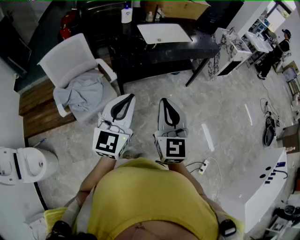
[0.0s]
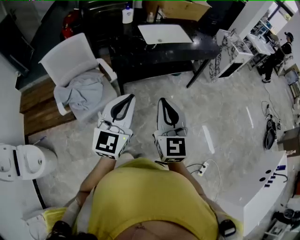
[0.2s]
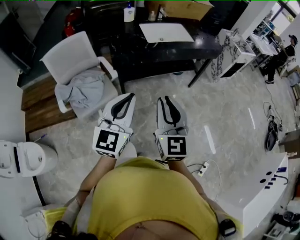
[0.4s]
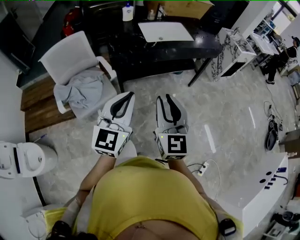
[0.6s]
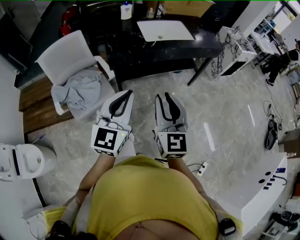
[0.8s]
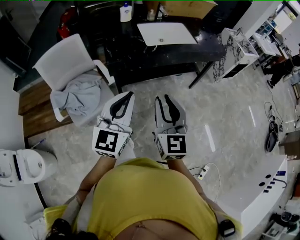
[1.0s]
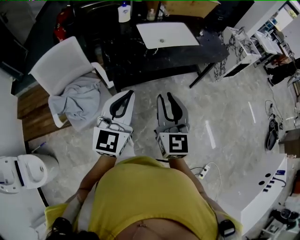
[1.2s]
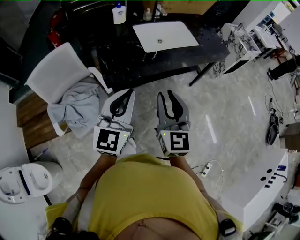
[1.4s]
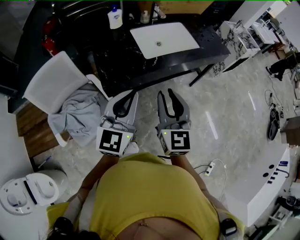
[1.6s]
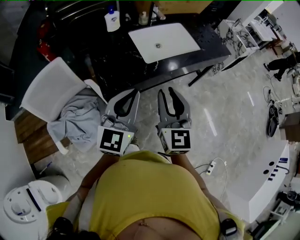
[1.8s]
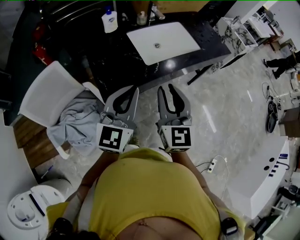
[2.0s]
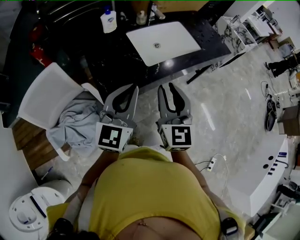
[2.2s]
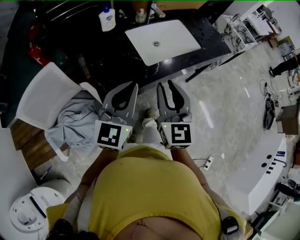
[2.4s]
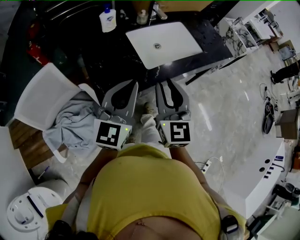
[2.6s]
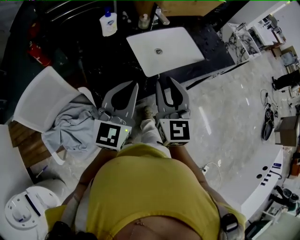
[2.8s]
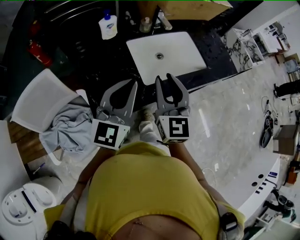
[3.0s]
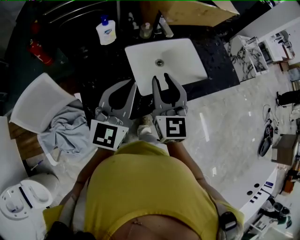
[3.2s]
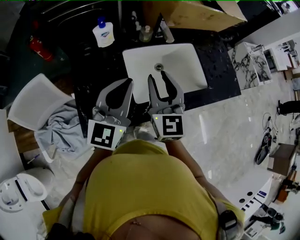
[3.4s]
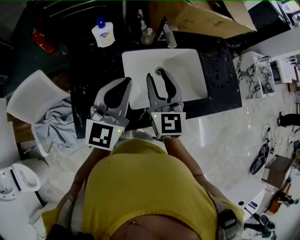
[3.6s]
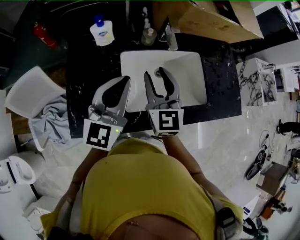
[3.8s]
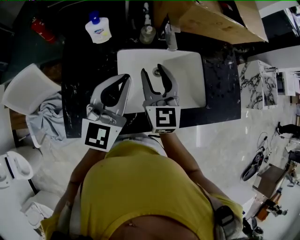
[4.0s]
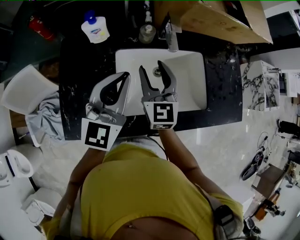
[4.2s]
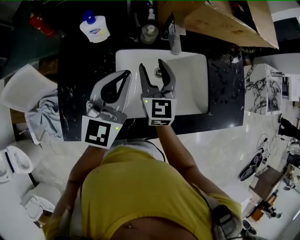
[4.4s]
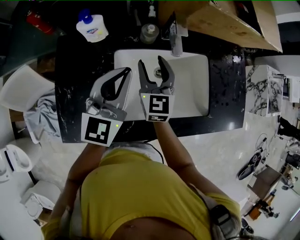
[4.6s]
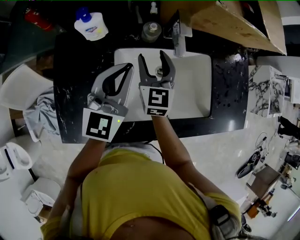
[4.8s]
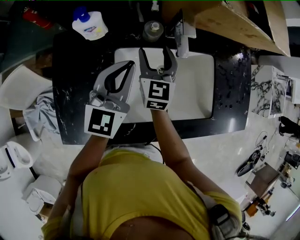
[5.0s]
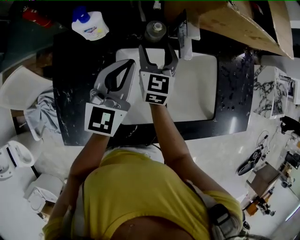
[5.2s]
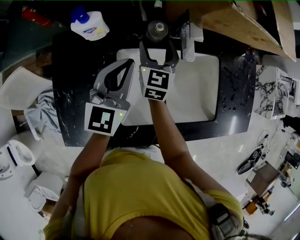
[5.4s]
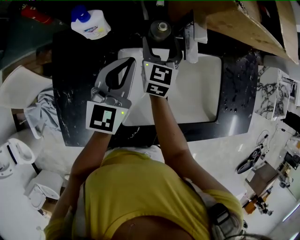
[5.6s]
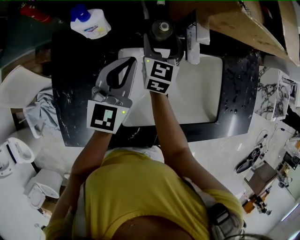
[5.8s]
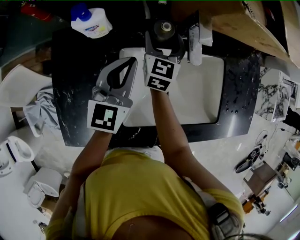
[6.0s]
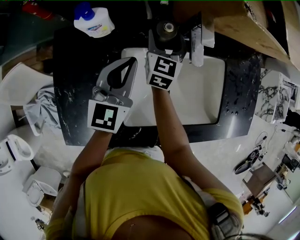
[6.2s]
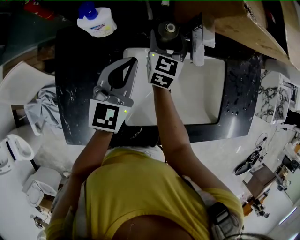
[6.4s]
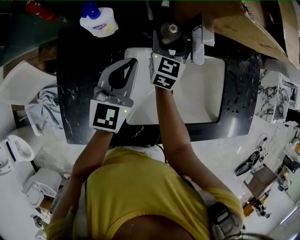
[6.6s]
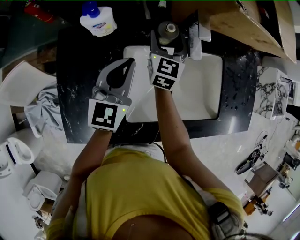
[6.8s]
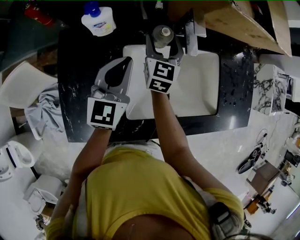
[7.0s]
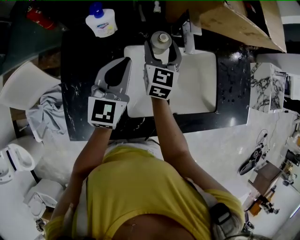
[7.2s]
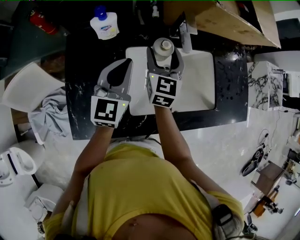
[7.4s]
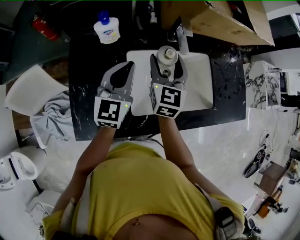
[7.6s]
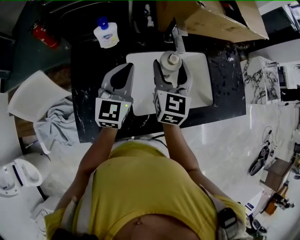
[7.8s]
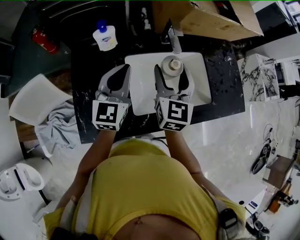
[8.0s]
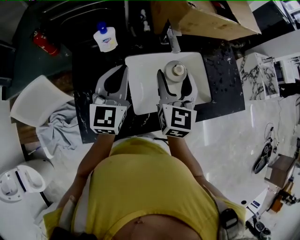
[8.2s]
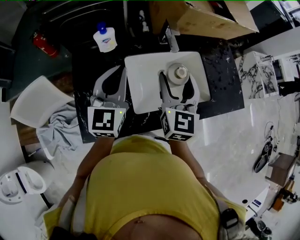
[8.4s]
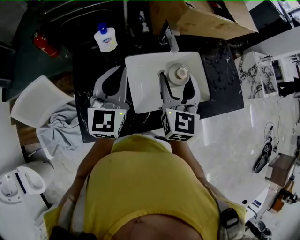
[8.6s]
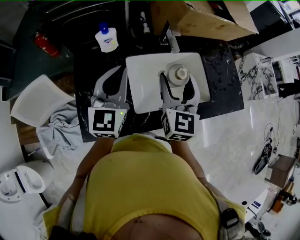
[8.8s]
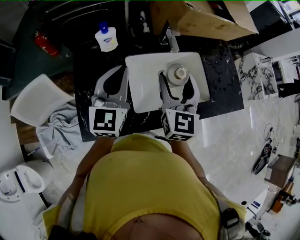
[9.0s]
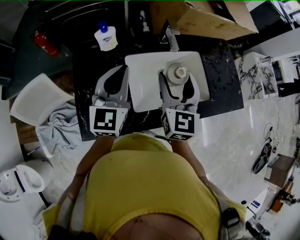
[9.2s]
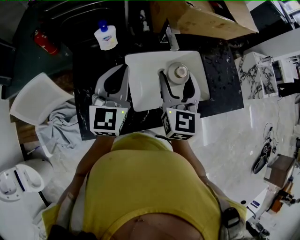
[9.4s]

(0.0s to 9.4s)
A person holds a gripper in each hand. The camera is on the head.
0.0s - 1.6s: The grippers both shift forward by approximately 30 cm.
1.6s - 3.2s: The grippers both shift forward by approximately 30 cm.
3.2s - 4.8s: The grippers both shift forward and downward by about 30 cm.
4.8s - 6.2s: The right gripper travels forward and downward by approximately 10 cm. The left gripper heads downward, covering approximately 5 cm.
6.2s - 7.8s: The right gripper heads backward and upward, covering approximately 25 cm, while the left gripper travels backward and upward by roughly 10 cm.
7.8s - 9.4s: The right gripper travels backward and upward by some 10 cm; the left gripper is displaced upward by about 5 cm.

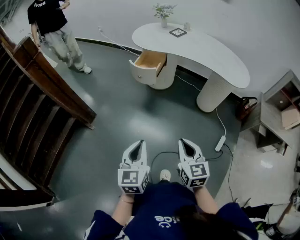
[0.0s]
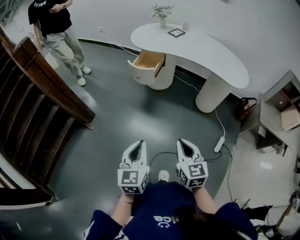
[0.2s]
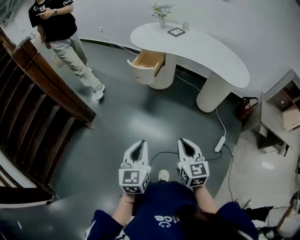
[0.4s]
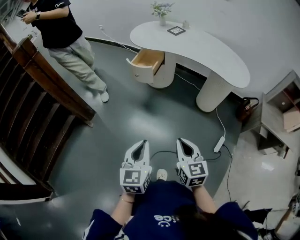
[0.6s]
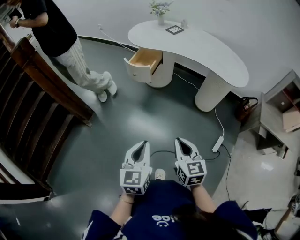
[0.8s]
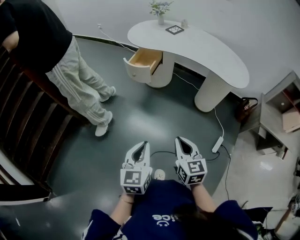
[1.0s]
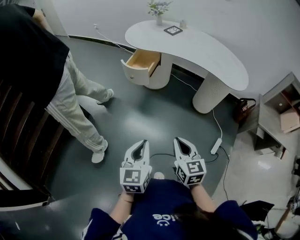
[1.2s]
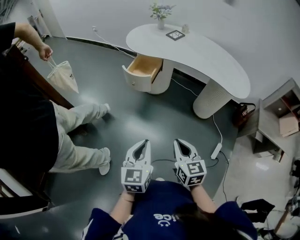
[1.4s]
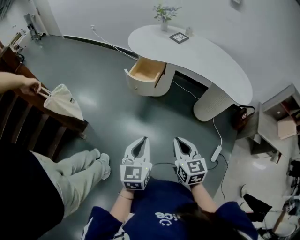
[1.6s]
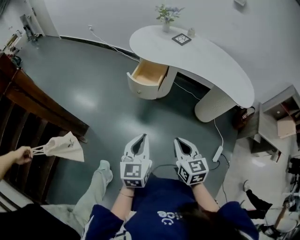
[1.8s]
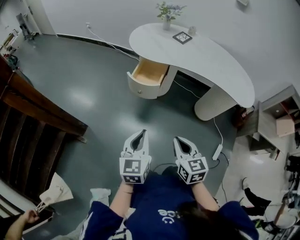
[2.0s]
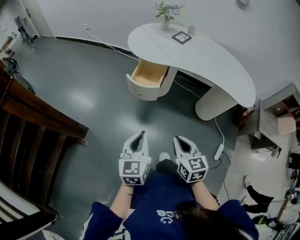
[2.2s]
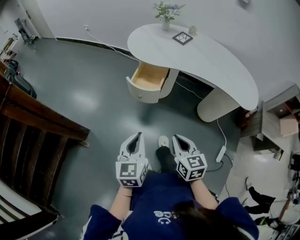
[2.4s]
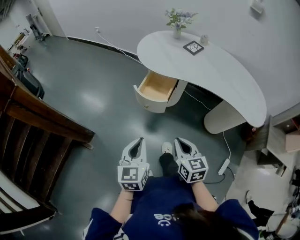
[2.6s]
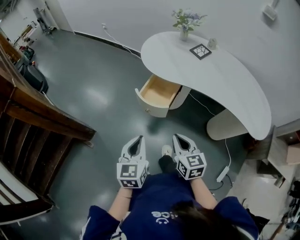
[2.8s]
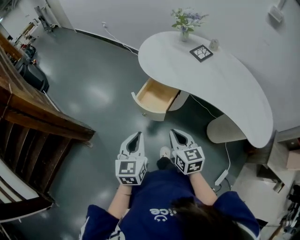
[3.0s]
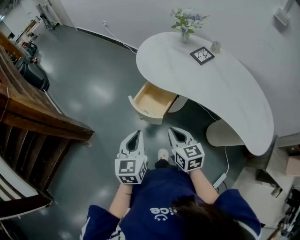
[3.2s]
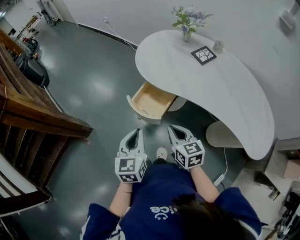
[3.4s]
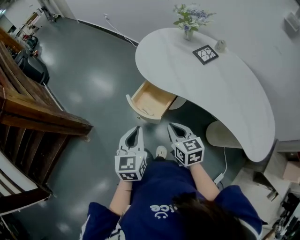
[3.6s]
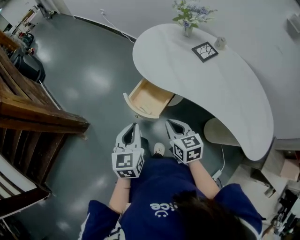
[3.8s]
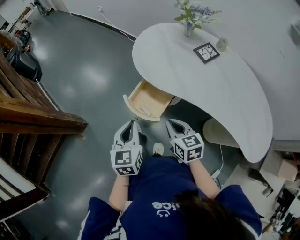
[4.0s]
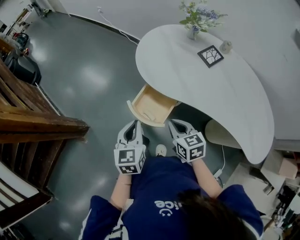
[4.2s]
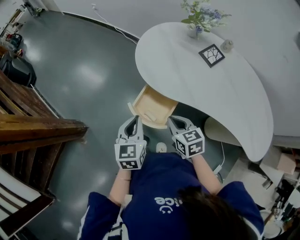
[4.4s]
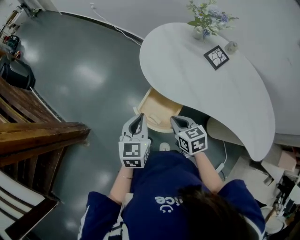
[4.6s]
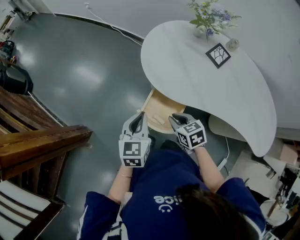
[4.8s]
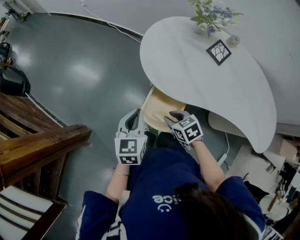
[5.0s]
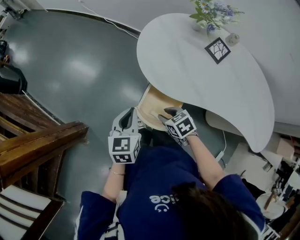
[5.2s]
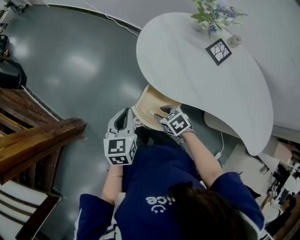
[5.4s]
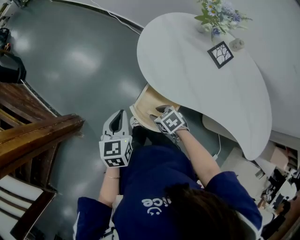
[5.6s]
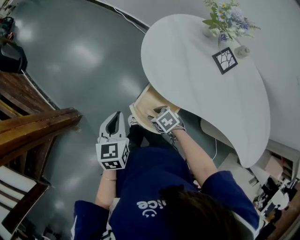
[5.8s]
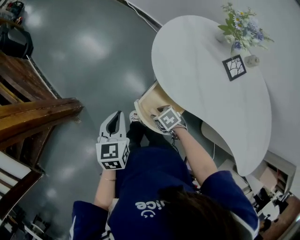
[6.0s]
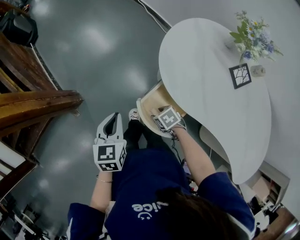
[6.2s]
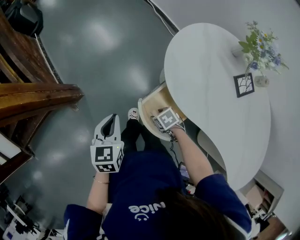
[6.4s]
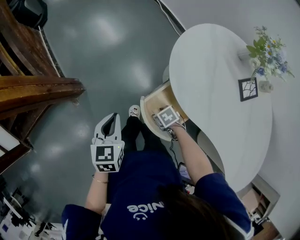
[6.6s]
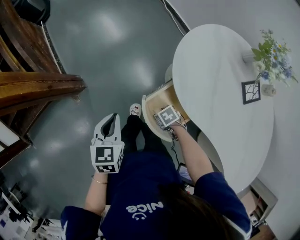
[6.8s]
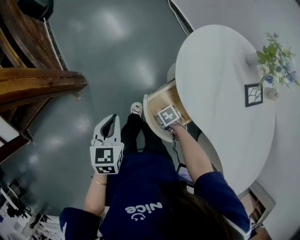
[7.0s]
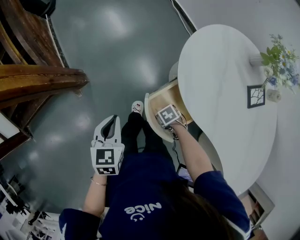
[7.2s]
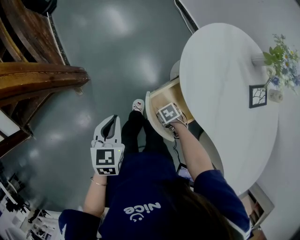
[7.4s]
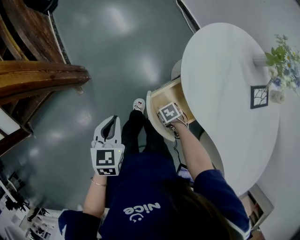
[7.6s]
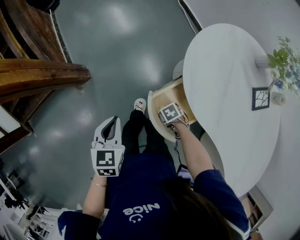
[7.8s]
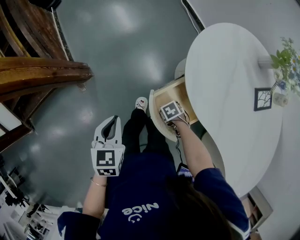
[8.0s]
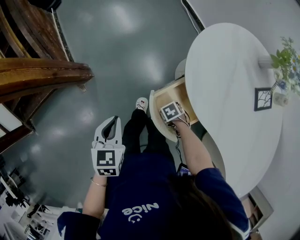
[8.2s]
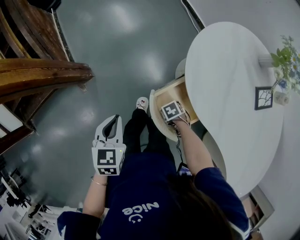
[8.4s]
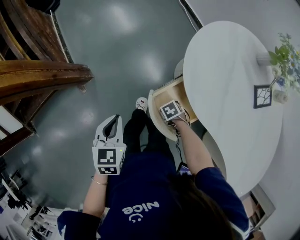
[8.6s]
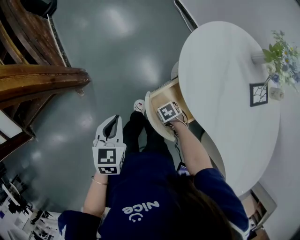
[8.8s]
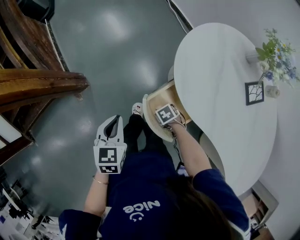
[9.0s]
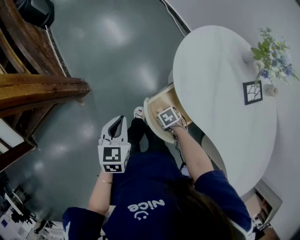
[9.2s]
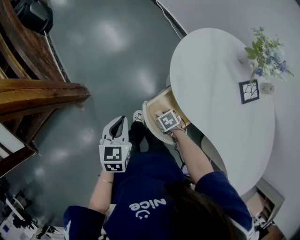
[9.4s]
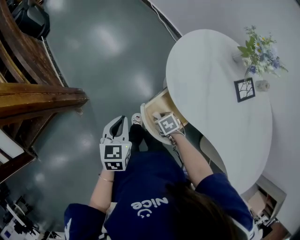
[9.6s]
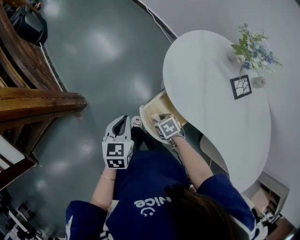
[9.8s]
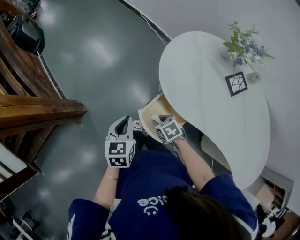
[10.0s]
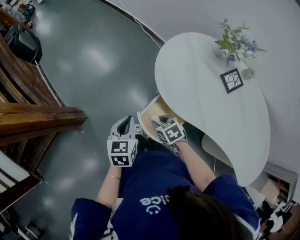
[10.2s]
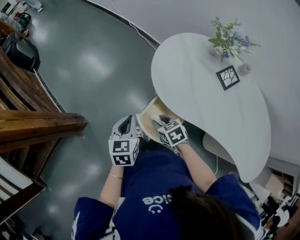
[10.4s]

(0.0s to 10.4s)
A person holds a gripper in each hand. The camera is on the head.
0.0s - 1.4s: Both grippers move forward, some 10 cm.
1.4s - 3.0s: The grippers both shift forward by approximately 35 cm.
3.0s - 4.4s: Both grippers travel together forward, roughly 20 cm.
4.4s - 6.0s: The left gripper shifts by some 10 cm, while the right gripper shifts approximately 20 cm downward, changes its angle by about 40 degrees, and opens.
6.0s - 7.4s: The right gripper shifts roughly 10 cm downward. The left gripper moves about 10 cm.
7.4s - 9.0s: The right gripper closes up.
9.0s - 10.4s: The right gripper moves upward, some 20 cm, and swivels some 30 degrees. Meanwhile the left gripper moves roughly 10 cm.

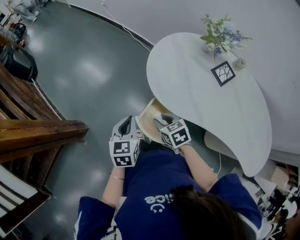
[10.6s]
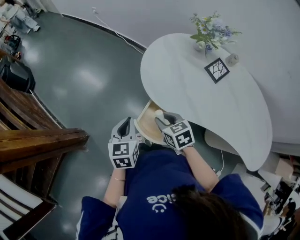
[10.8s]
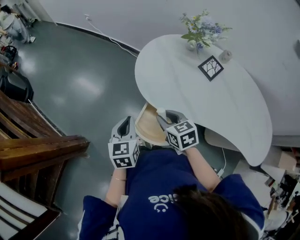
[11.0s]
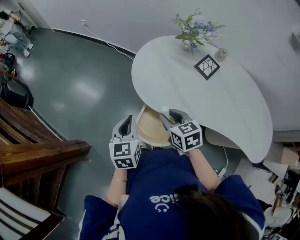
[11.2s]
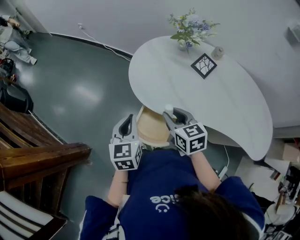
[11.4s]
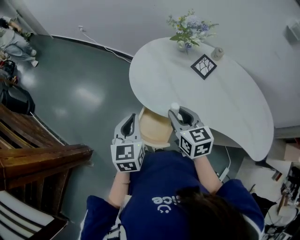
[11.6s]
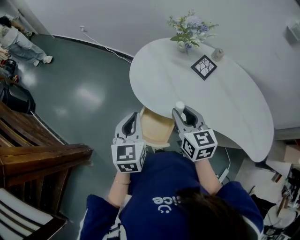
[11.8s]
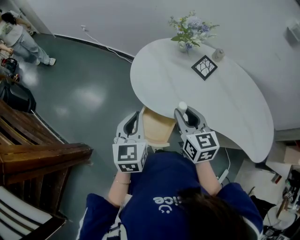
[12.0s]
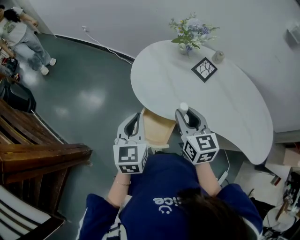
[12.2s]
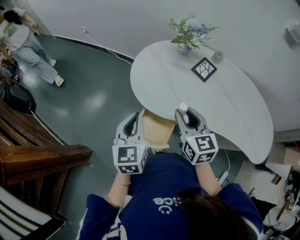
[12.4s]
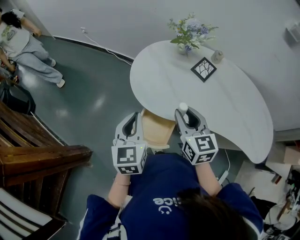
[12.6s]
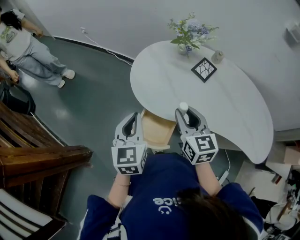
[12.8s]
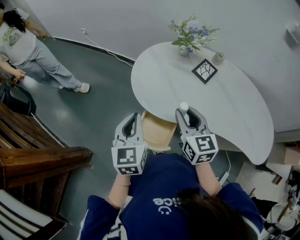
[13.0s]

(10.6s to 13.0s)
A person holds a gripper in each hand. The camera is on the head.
10.6s - 11.8s: The left gripper is displaced upward and to the right by some 15 cm. The right gripper heads upward and to the right, covering some 20 cm, and rotates some 40 degrees.
11.8s - 13.0s: The grippers make only small movements.

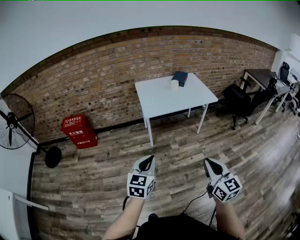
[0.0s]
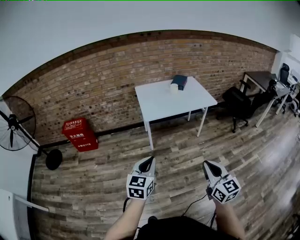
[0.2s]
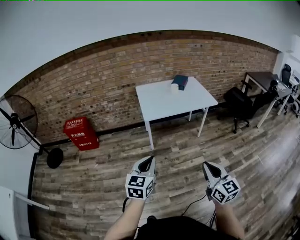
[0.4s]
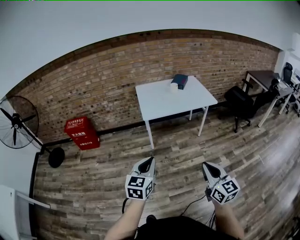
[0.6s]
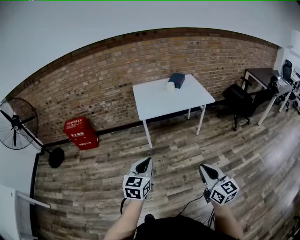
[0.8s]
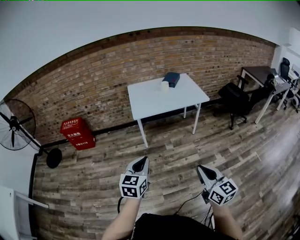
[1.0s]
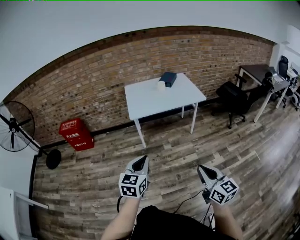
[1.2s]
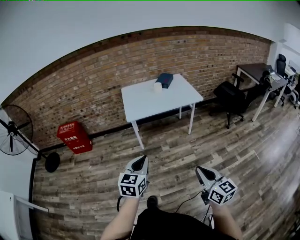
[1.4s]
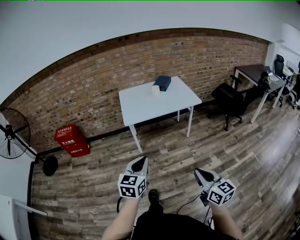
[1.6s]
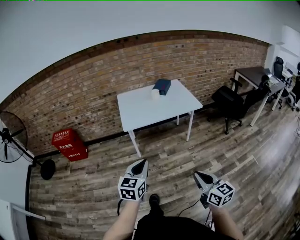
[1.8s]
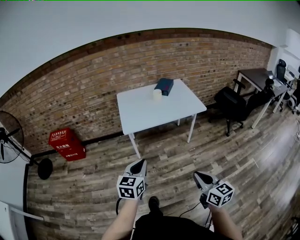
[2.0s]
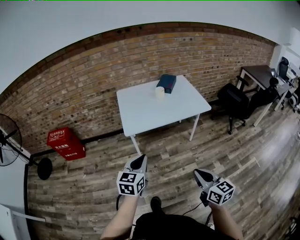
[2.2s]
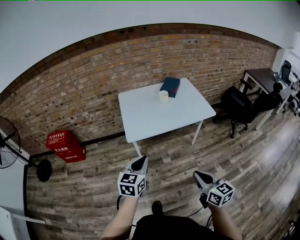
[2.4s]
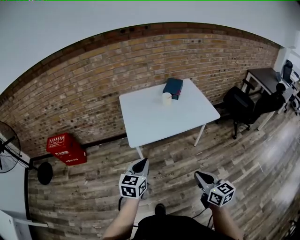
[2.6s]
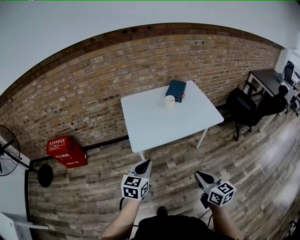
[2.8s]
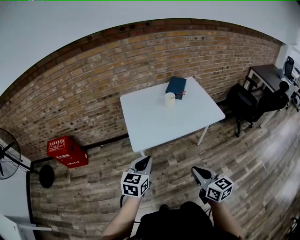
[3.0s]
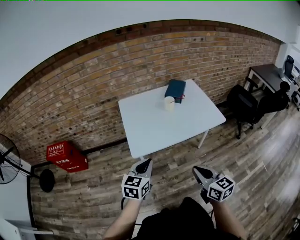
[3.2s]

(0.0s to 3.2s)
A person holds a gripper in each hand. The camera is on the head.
0.0s - 1.6s: The two grippers go approximately 15 cm to the right.
1.6s - 3.2s: Both grippers move forward, some 40 cm.
